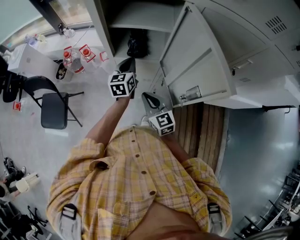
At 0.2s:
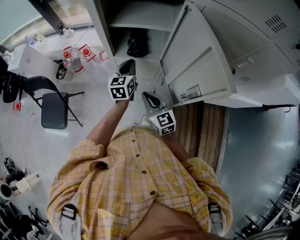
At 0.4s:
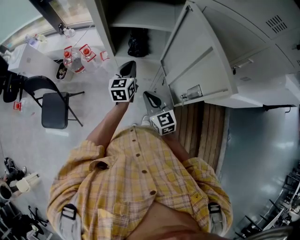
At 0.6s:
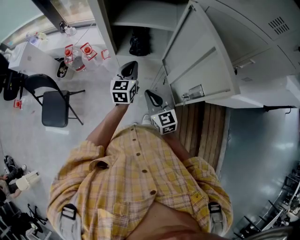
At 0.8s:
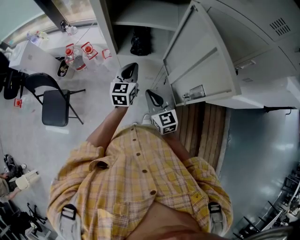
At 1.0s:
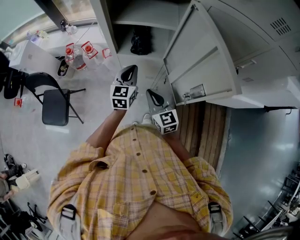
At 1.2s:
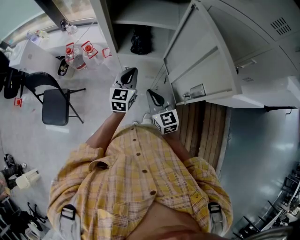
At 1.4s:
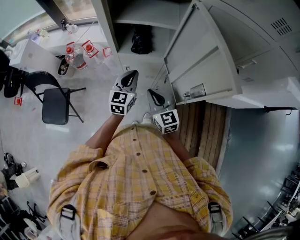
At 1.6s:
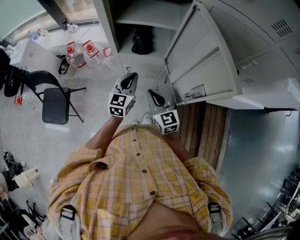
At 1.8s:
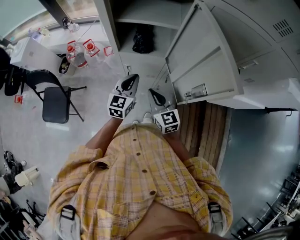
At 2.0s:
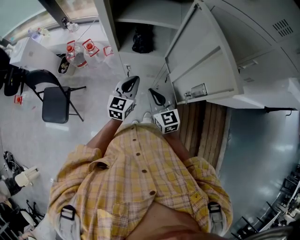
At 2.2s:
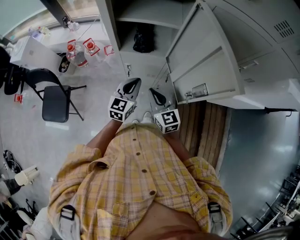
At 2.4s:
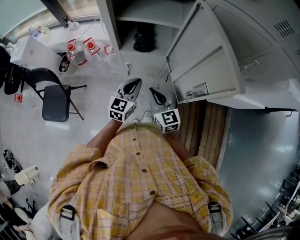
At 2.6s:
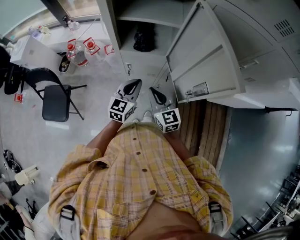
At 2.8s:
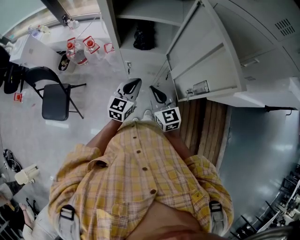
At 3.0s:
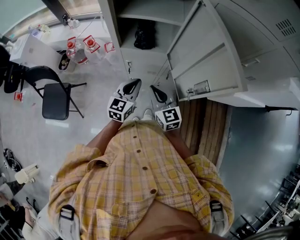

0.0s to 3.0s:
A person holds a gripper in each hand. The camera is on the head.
0.0s to 1.6s: The left gripper travels backward by approximately 10 cm.
1.6s to 3.0s: The left gripper moves approximately 5 cm.

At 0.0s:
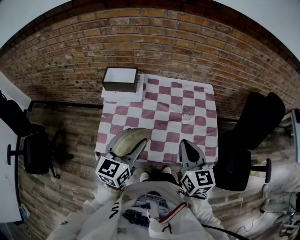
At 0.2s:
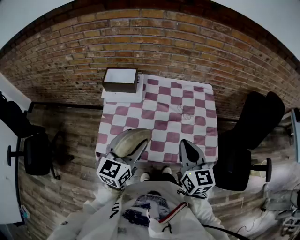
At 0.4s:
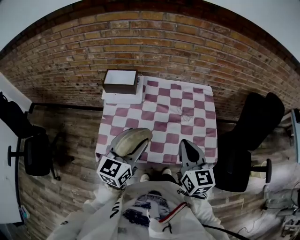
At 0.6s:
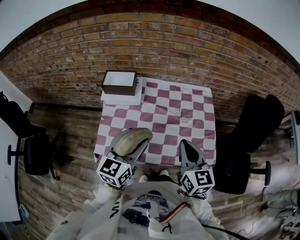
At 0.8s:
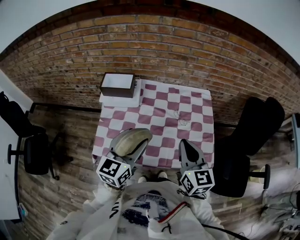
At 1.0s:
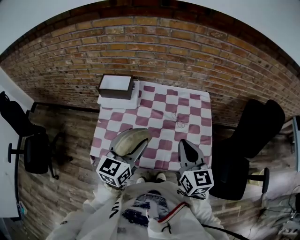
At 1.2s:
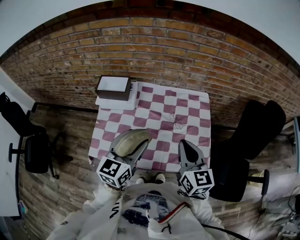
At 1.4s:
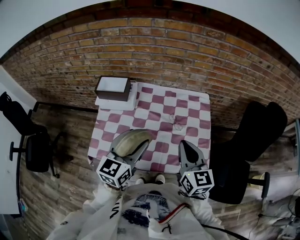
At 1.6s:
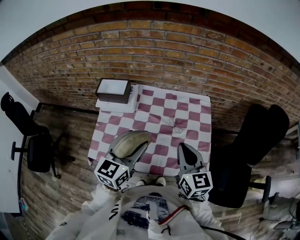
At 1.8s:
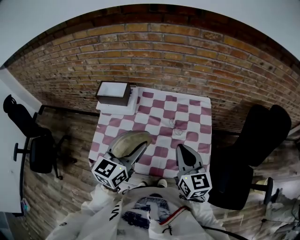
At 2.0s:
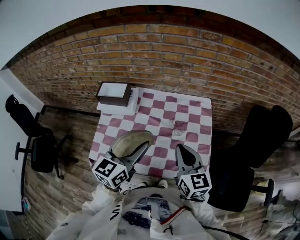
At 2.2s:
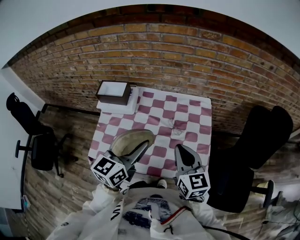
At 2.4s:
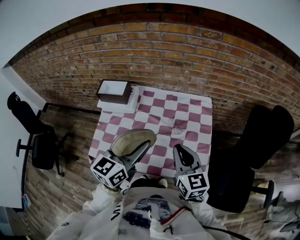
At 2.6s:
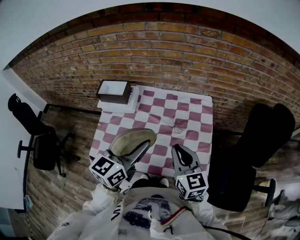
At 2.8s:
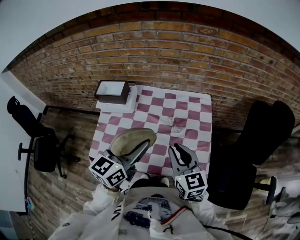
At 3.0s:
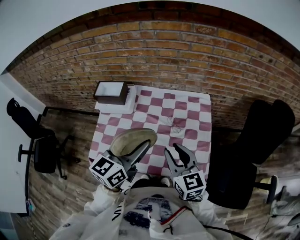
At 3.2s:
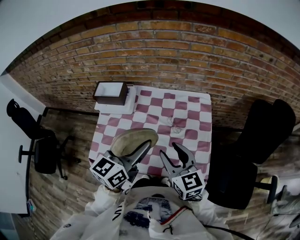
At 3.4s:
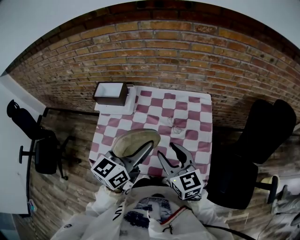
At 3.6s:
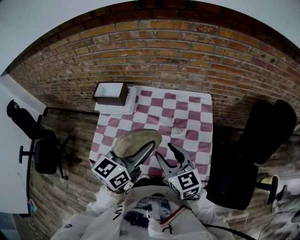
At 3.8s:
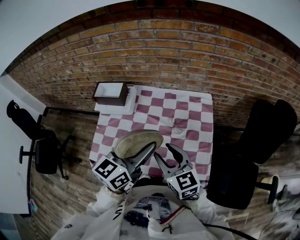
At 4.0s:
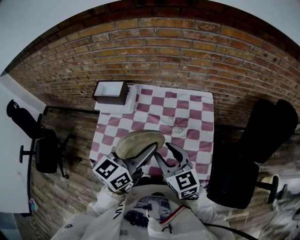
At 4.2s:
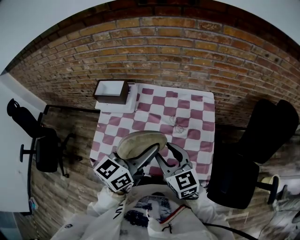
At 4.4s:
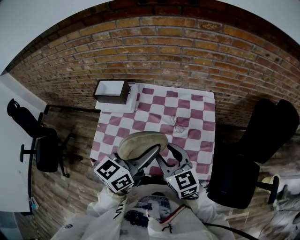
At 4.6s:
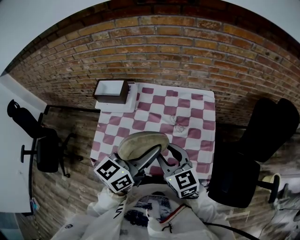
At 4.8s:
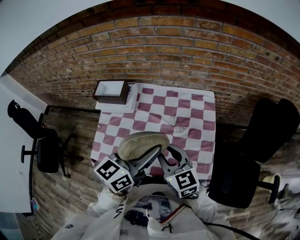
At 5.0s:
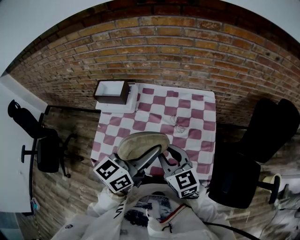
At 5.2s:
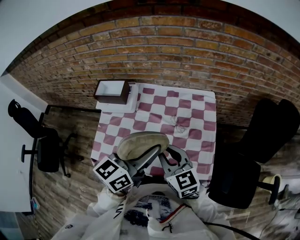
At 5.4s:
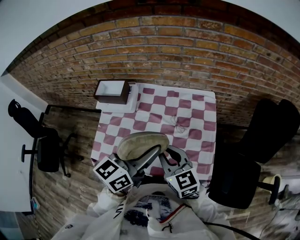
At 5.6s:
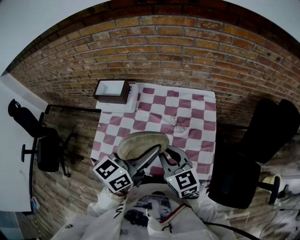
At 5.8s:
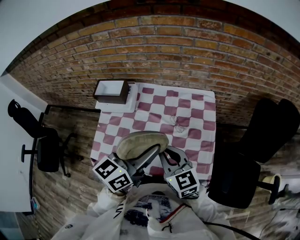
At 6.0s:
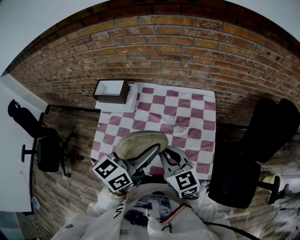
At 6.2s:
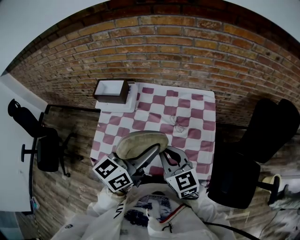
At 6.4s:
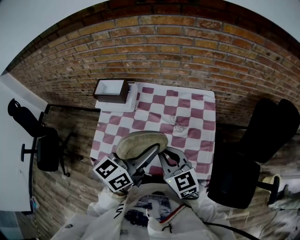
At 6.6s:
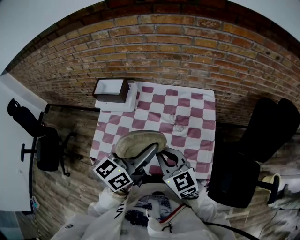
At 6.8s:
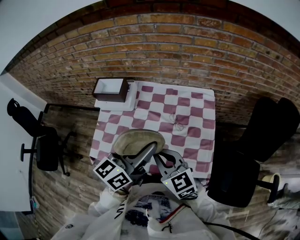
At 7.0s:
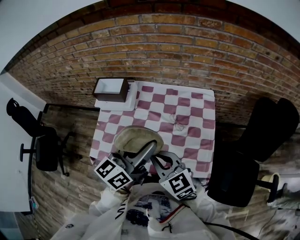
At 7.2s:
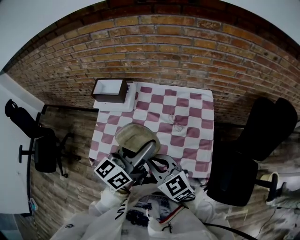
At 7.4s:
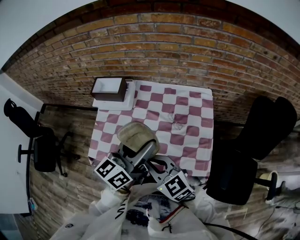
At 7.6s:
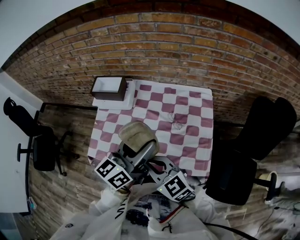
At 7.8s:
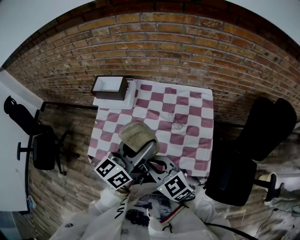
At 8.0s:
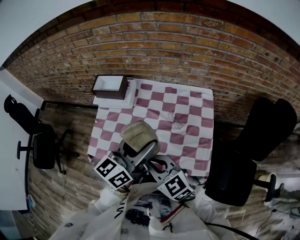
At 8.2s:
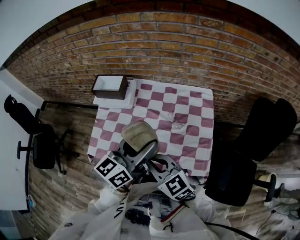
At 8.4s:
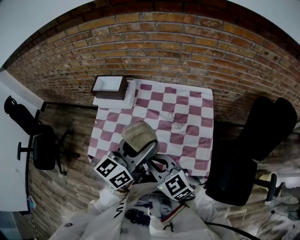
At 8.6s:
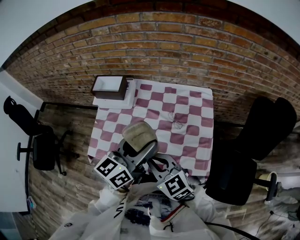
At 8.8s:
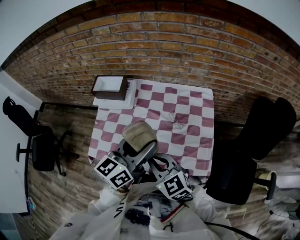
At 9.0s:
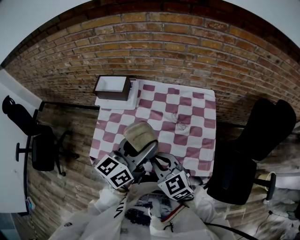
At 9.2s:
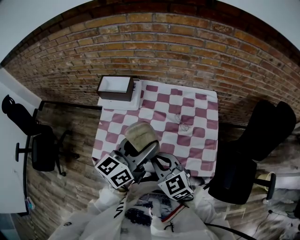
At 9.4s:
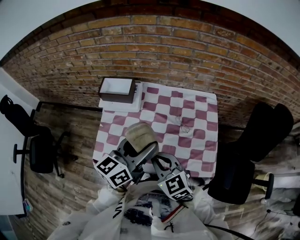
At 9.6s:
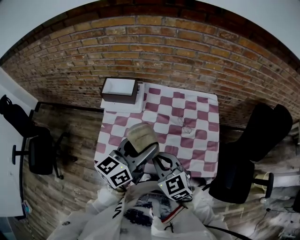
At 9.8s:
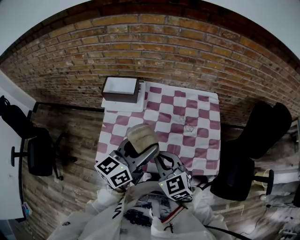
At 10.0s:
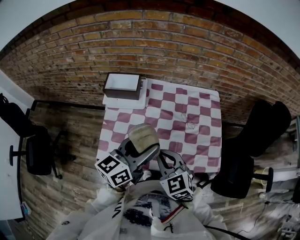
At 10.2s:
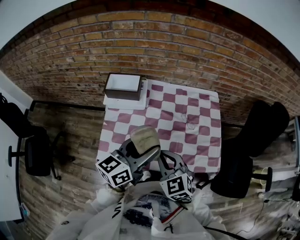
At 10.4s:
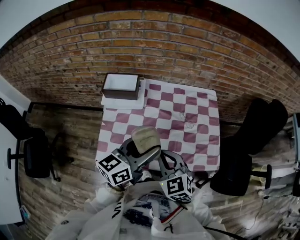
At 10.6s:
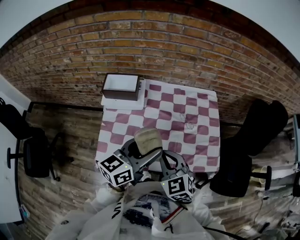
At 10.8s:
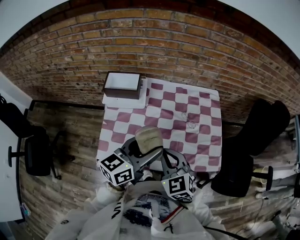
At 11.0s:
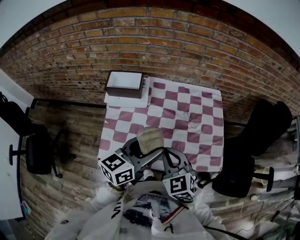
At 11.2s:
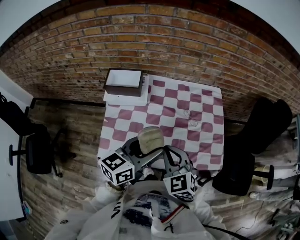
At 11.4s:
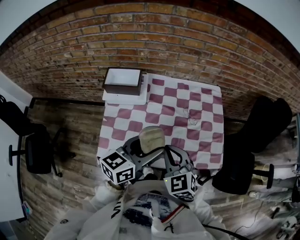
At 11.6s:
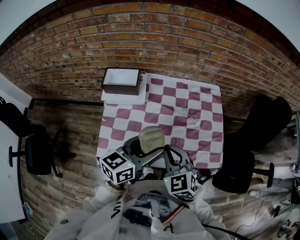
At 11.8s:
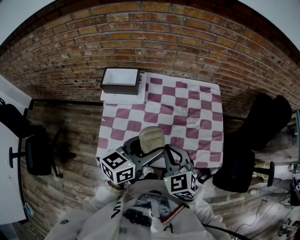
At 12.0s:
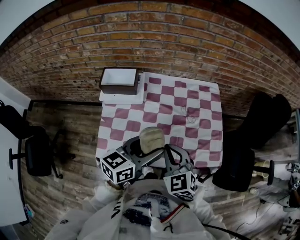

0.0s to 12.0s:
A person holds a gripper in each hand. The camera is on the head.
0.0s to 1.6s: The two grippers go approximately 10 cm to the right and forward.
1.6s to 3.0s: The left gripper travels to the right by approximately 5 cm; the right gripper opens its fingers.
3.0s to 4.4s: The right gripper shifts by approximately 5 cm.
4.4s to 6.0s: The right gripper closes up.
6.0s to 7.6s: The right gripper moves to the left and backward, roughly 10 cm, and rotates about 20 degrees.
7.6s to 9.0s: There are only small adjustments of the grippers.
9.0s to 10.4s: The two grippers go roughly 10 cm to the left.
10.4s to 12.0s: There are only small adjustments of the grippers.

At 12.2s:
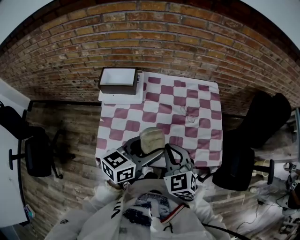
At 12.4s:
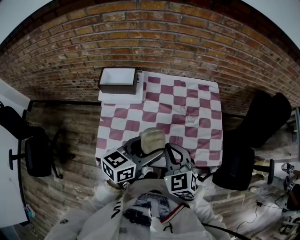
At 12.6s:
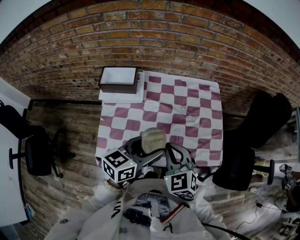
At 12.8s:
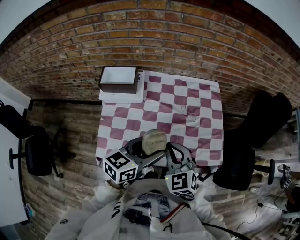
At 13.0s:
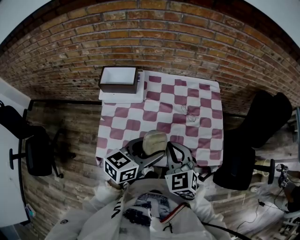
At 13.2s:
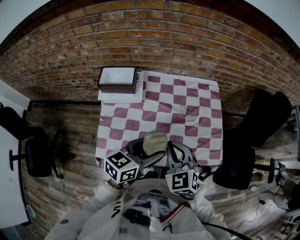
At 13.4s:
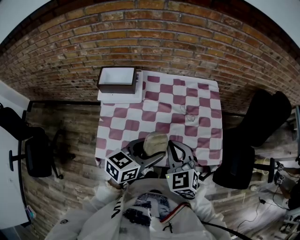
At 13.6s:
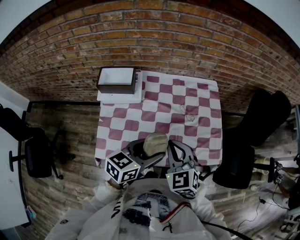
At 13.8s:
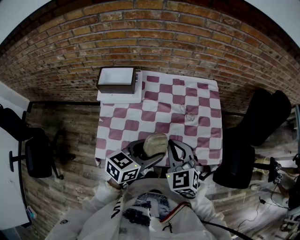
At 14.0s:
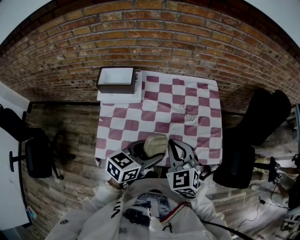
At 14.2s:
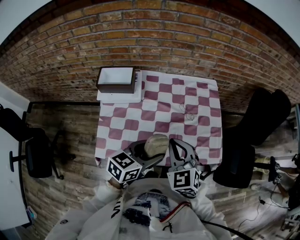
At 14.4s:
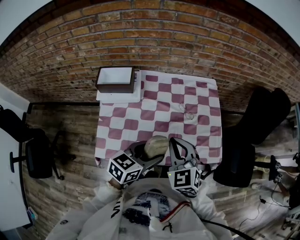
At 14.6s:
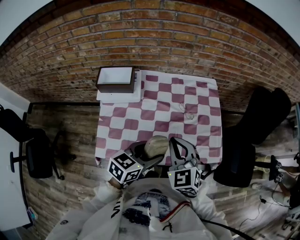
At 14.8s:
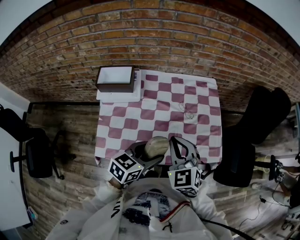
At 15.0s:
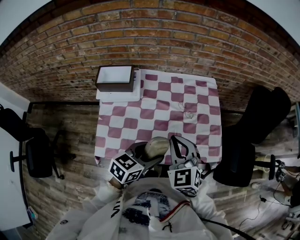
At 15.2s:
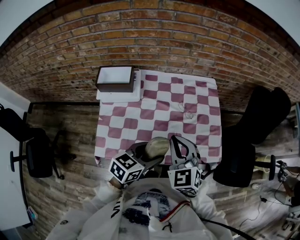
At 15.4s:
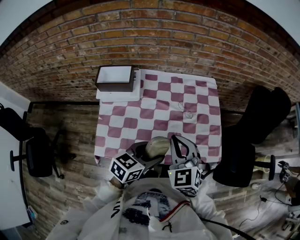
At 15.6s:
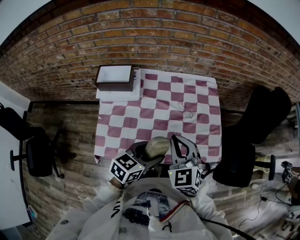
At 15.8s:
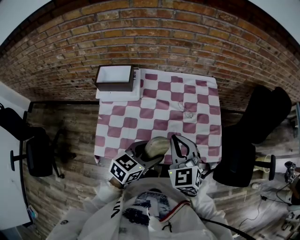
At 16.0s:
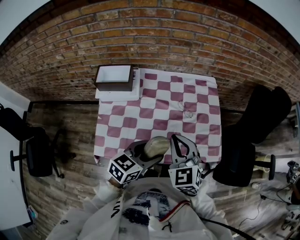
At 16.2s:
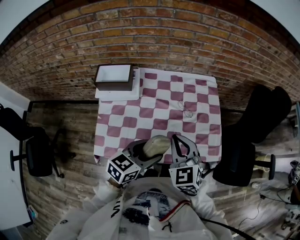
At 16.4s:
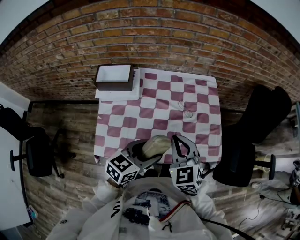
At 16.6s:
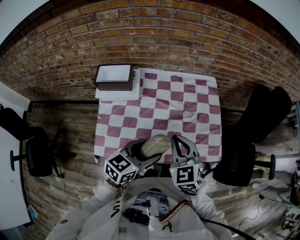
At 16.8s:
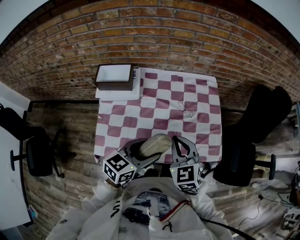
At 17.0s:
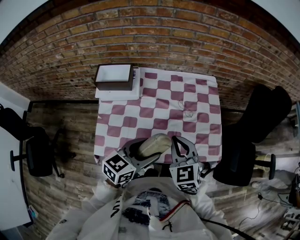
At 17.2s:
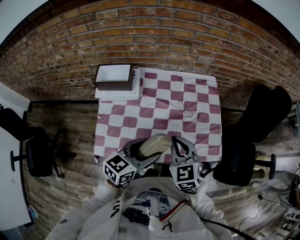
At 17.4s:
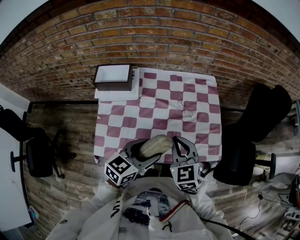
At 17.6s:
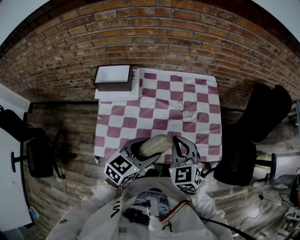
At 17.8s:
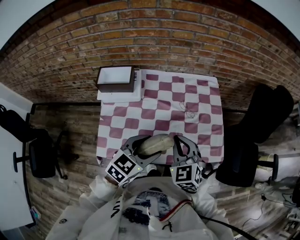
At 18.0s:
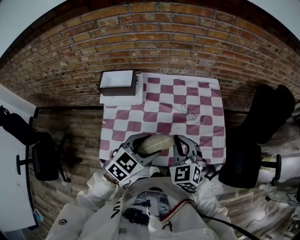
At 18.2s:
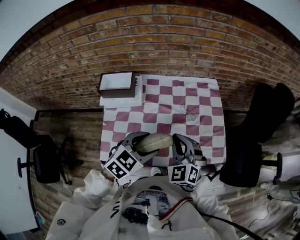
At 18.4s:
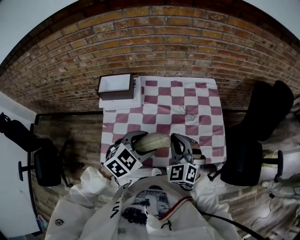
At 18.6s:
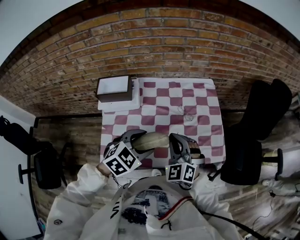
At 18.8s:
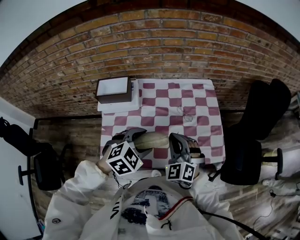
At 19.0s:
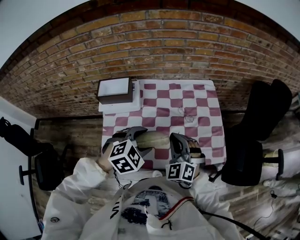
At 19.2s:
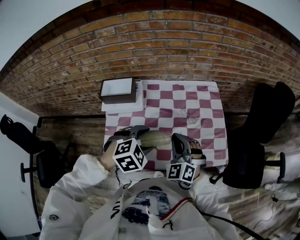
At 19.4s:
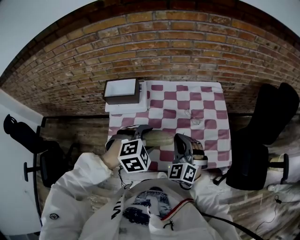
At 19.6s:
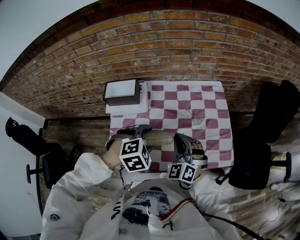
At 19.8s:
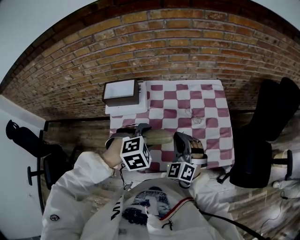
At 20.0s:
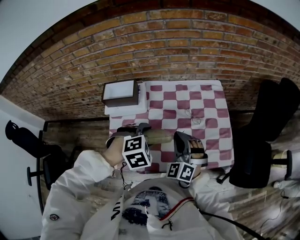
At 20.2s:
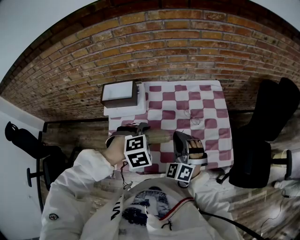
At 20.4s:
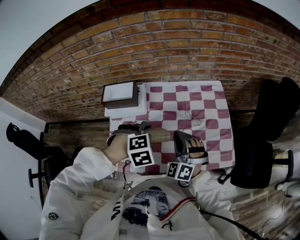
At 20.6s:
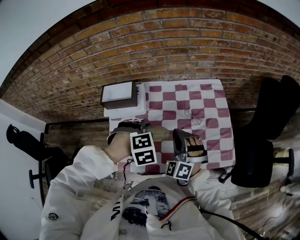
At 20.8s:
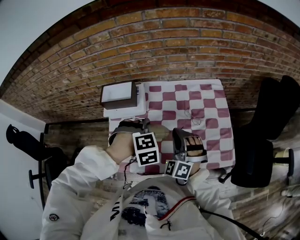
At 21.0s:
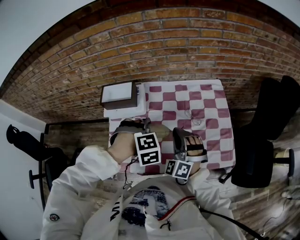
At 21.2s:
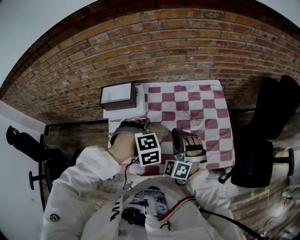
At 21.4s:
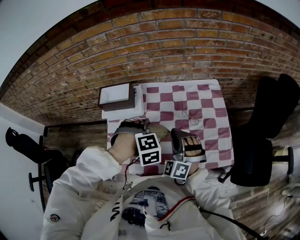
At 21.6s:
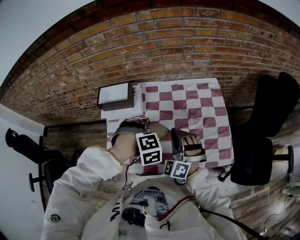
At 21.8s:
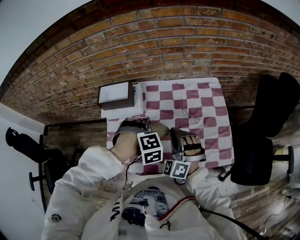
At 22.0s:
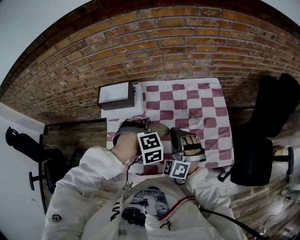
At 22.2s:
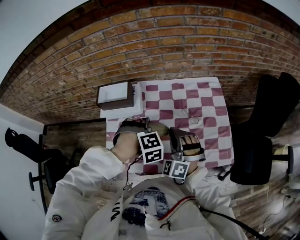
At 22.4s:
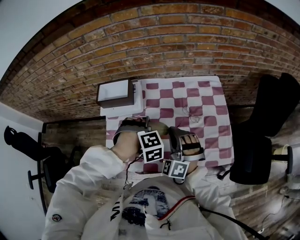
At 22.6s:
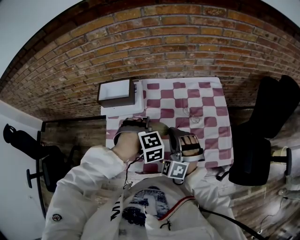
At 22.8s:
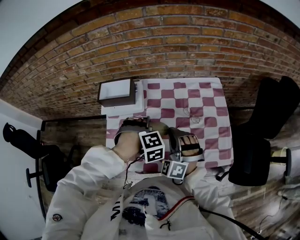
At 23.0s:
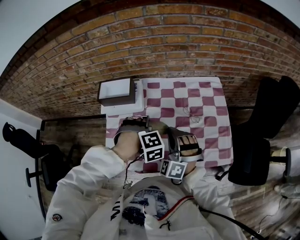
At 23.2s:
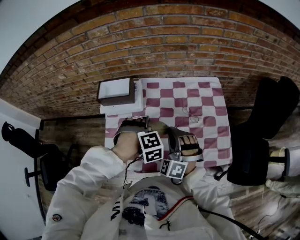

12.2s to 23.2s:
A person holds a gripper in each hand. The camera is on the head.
12.2s to 13.8s: The grippers make only small movements.
13.8s to 17.0s: The grippers make only small movements.
17.0s to 18.4s: The right gripper rotates about 20 degrees. The left gripper swivels about 40 degrees.
18.4s to 20.0s: The left gripper ends up approximately 5 cm from where it was, and changes its angle by some 40 degrees.
20.0s to 21.6s: The left gripper rotates approximately 20 degrees.
21.6s to 23.2s: There are only small adjustments of the grippers.
